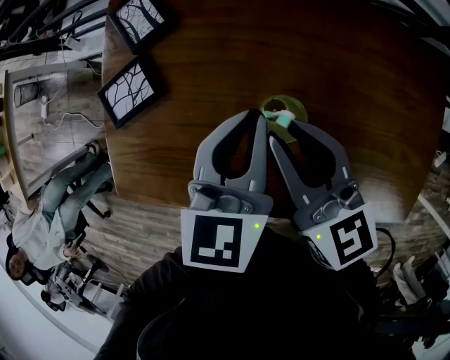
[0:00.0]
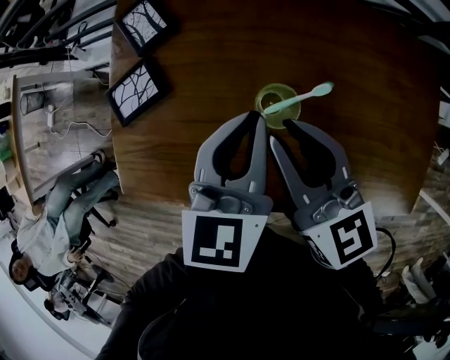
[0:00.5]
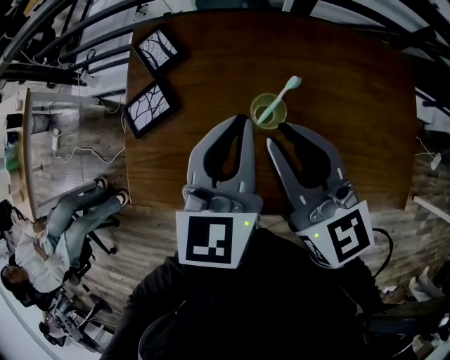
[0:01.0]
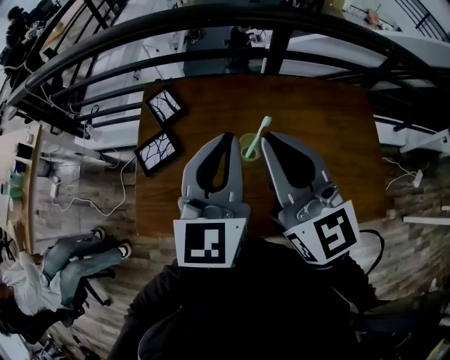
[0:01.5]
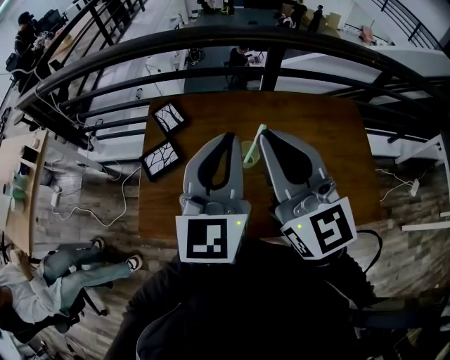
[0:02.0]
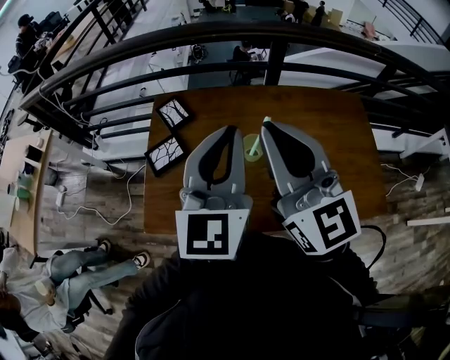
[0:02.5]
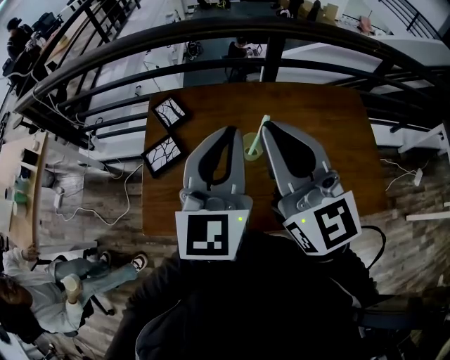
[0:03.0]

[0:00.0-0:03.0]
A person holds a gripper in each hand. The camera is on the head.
0:00.0 to 0:01.5: The grippers both shift upward by about 20 cm. The right gripper turns by approximately 30 degrees, and closes up. Meanwhile the left gripper changes its angle by about 30 degrees.
0:01.5 to 0:03.0: The grippers stay close to where they were, moving slightly.
